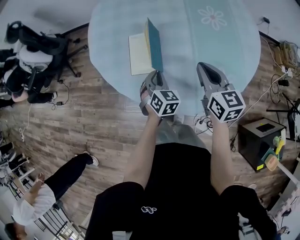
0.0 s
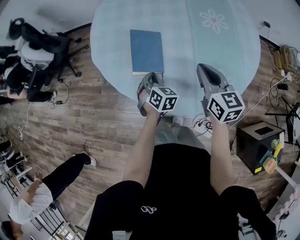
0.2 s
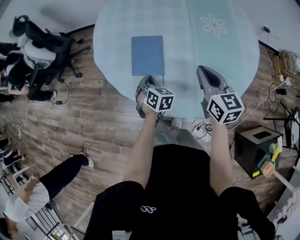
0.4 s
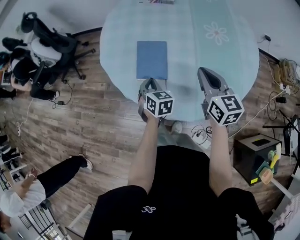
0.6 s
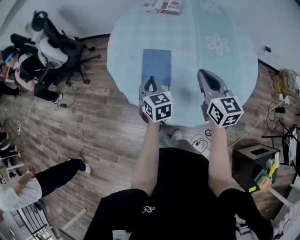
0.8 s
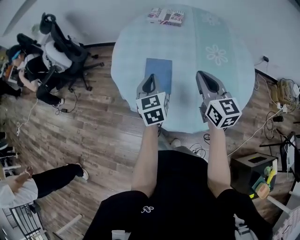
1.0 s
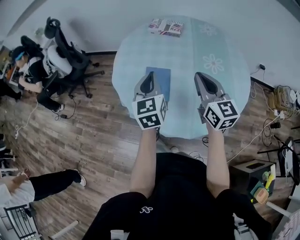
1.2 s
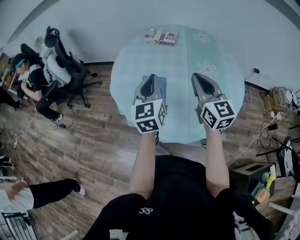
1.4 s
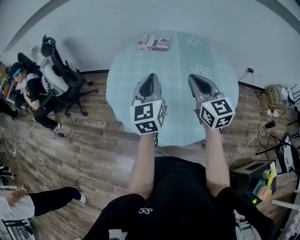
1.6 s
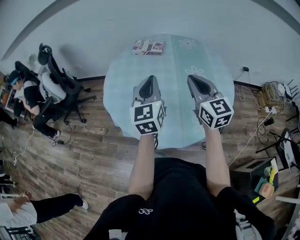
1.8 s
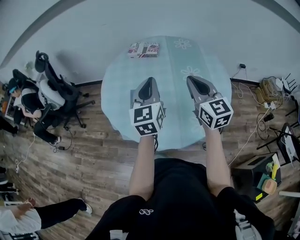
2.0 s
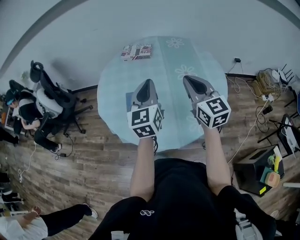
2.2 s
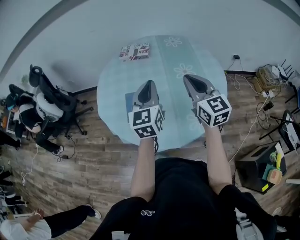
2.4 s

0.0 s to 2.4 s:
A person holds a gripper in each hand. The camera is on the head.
0.0 to 1.2 s: The right gripper moves upward, roughly 15 cm, and changes its angle by approximately 20 degrees. The left gripper travels upward by roughly 25 cm, and angles its fingers upward, by some 30 degrees.
1.2 to 2.4 s: The left gripper heads to the right and upward, covering approximately 15 cm. The right gripper moves to the right, about 10 cm.

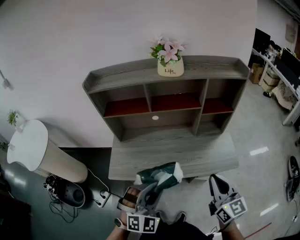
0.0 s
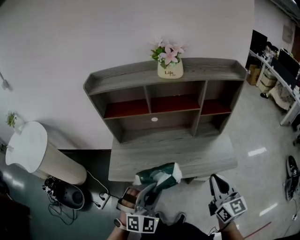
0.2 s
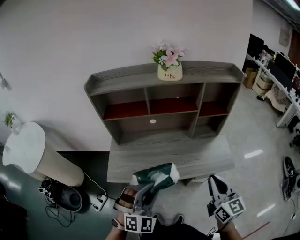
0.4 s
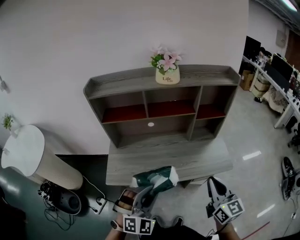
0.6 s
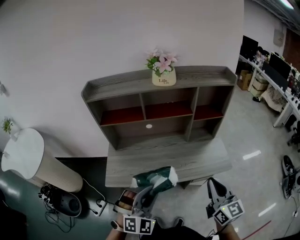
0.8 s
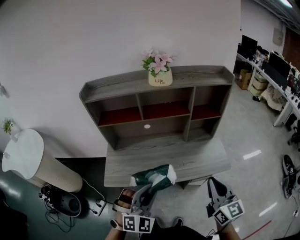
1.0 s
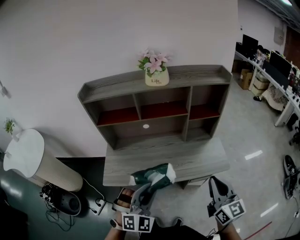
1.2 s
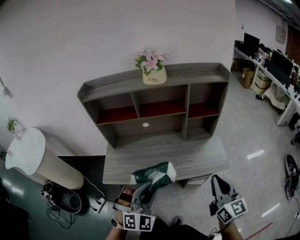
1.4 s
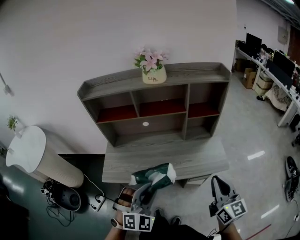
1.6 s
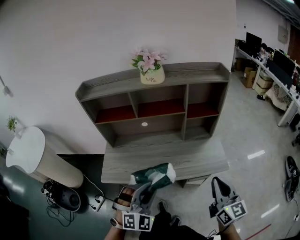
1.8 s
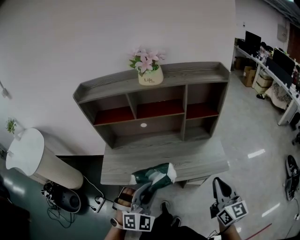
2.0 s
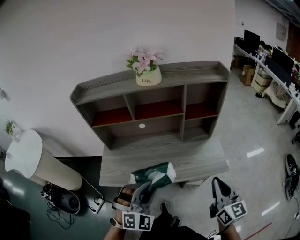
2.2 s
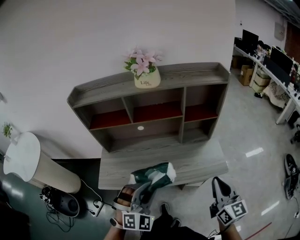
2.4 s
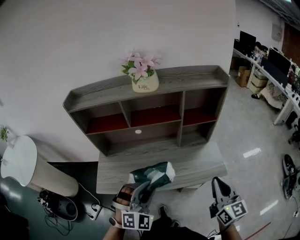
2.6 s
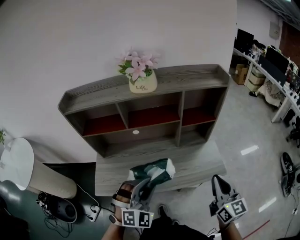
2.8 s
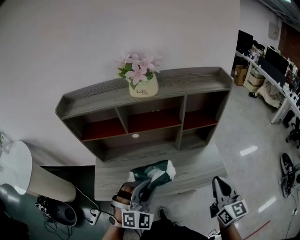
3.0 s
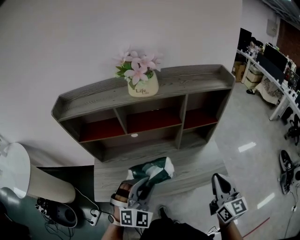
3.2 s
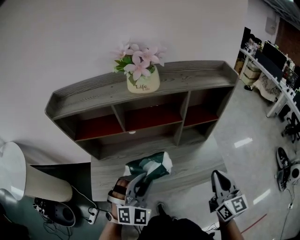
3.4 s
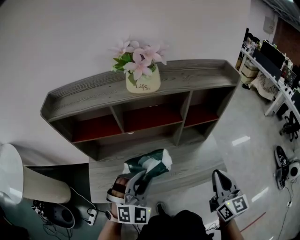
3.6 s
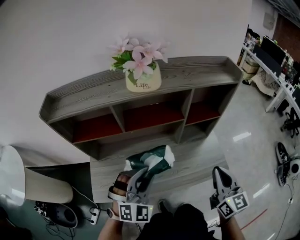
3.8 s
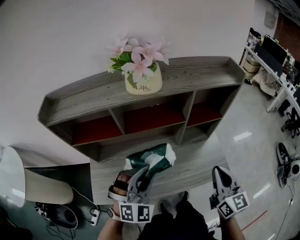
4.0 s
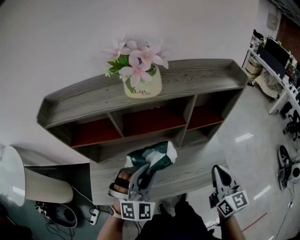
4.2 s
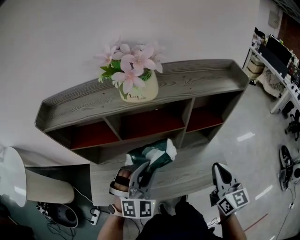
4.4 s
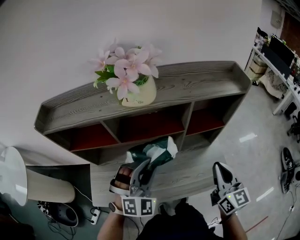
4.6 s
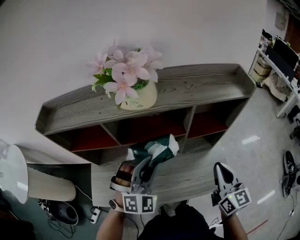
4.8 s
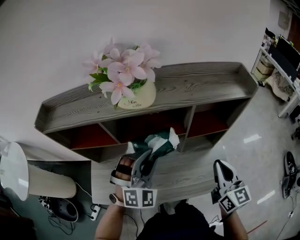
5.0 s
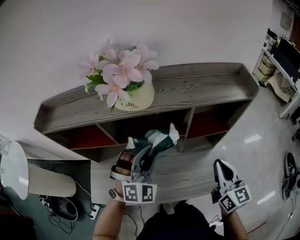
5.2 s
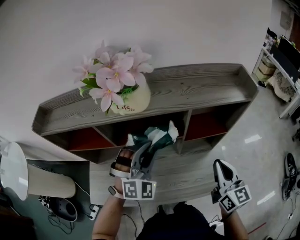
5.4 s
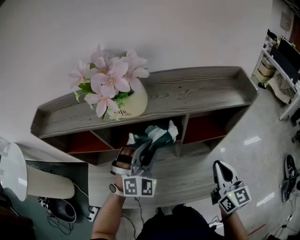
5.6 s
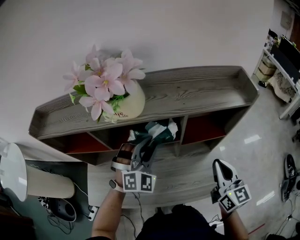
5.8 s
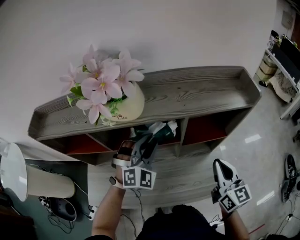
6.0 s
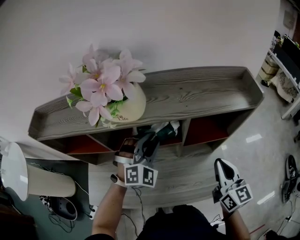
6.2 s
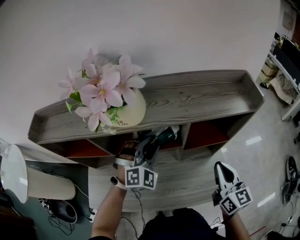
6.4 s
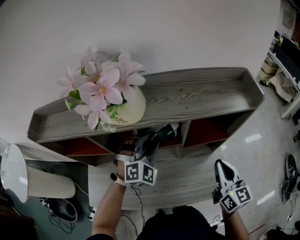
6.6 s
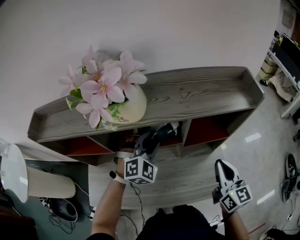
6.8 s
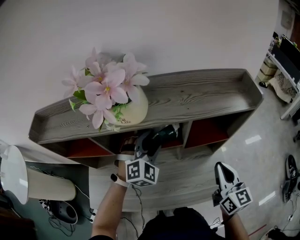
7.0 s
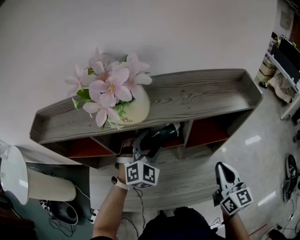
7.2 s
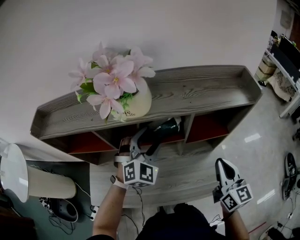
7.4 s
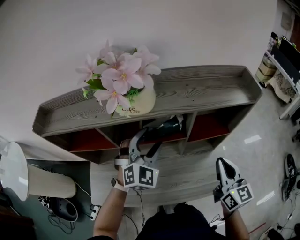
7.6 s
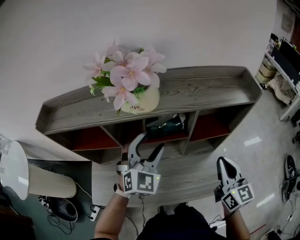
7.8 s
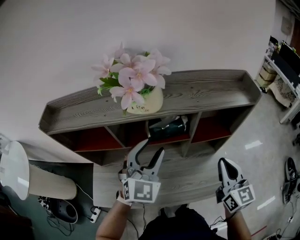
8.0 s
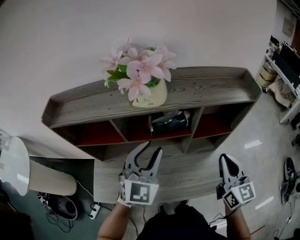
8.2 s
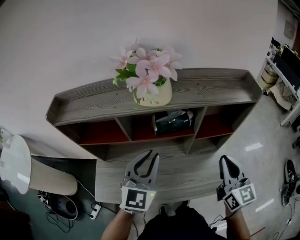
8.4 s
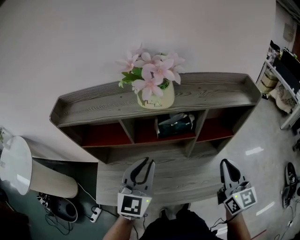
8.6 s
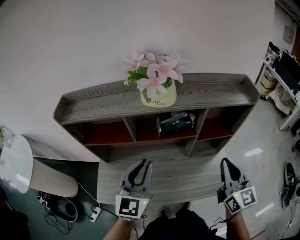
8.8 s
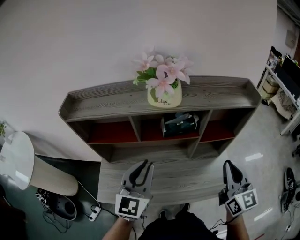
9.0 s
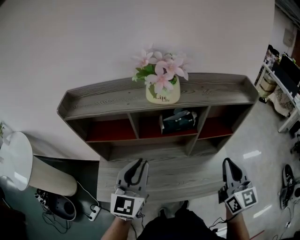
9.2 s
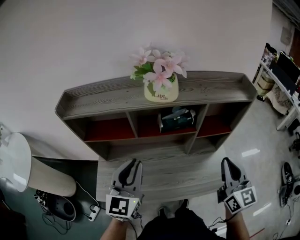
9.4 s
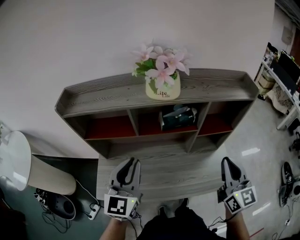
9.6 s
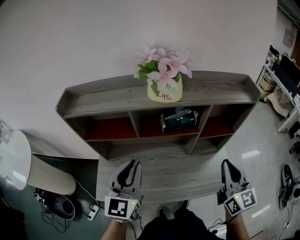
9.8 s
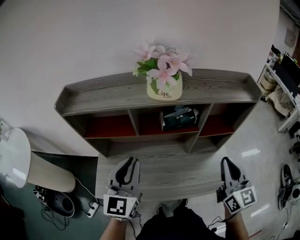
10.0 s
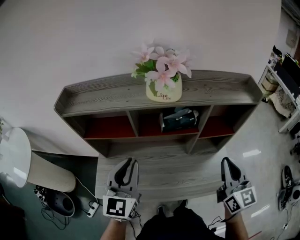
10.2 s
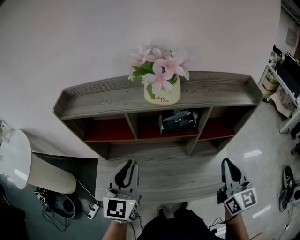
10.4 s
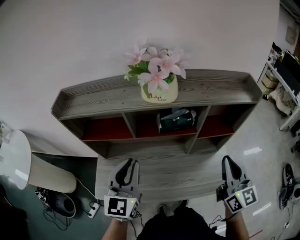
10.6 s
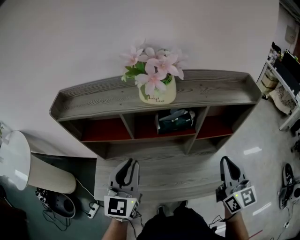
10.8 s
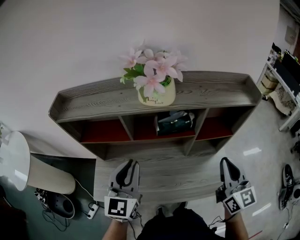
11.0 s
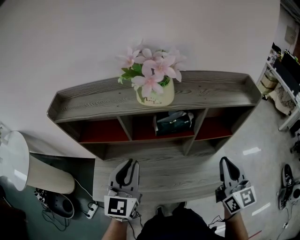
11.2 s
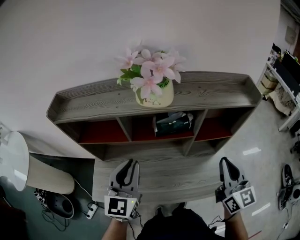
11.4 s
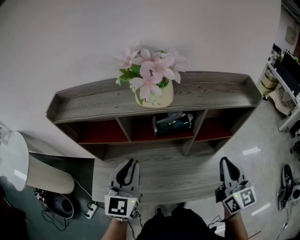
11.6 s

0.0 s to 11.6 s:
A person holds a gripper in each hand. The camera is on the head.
0.0 to 1.4 s: The right gripper is displaced to the right by roughly 5 cm.
1.4 to 2.8 s: The grippers both shift forward by some 10 cm.
2.8 to 4.4 s: Both grippers move forward, about 15 cm.
4.4 to 5.8 s: The right gripper moves forward and to the right, approximately 10 cm; the left gripper moves forward, about 15 cm.
5.8 to 7.2 s: The left gripper opens up.
7.2 to 8.8 s: The left gripper moves backward, to the left and upward, some 25 cm, rolls counterclockwise, seen from behind, by approximately 50 degrees, and closes its fingers. The right gripper heads upward, backward and to the left, covering about 10 cm.
8.8 to 10.2 s: The left gripper heads to the left, covering approximately 5 cm.
10.2 to 11.6 s: There are only small adjustments of the grippers.

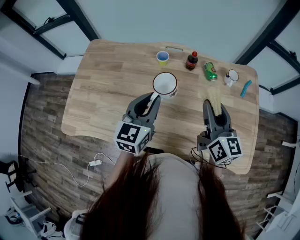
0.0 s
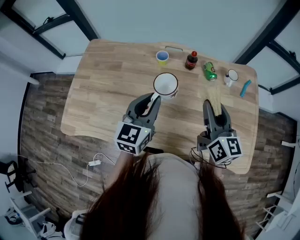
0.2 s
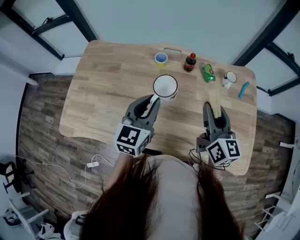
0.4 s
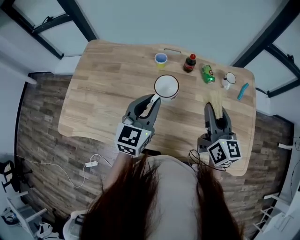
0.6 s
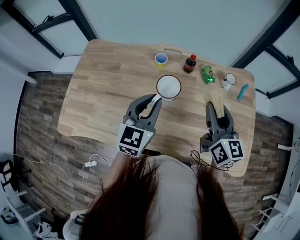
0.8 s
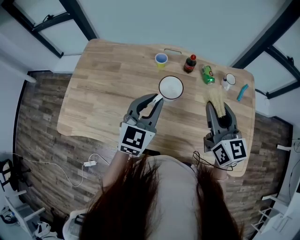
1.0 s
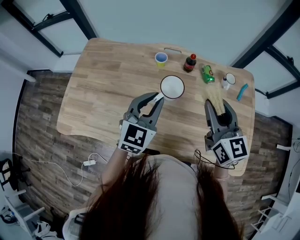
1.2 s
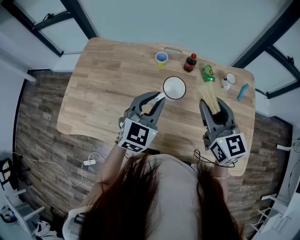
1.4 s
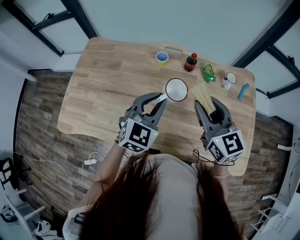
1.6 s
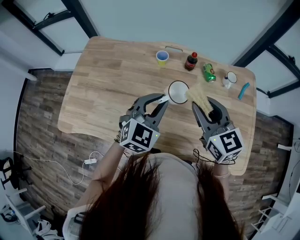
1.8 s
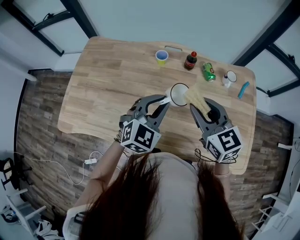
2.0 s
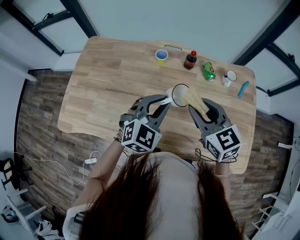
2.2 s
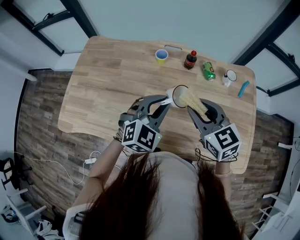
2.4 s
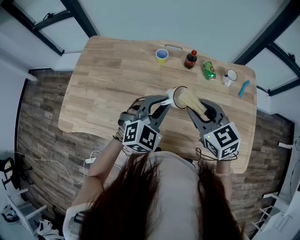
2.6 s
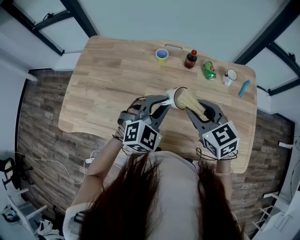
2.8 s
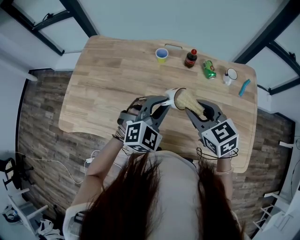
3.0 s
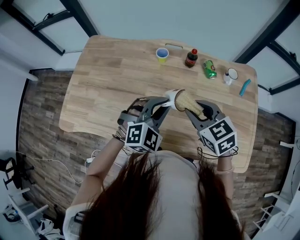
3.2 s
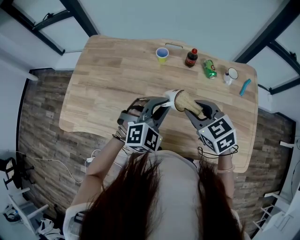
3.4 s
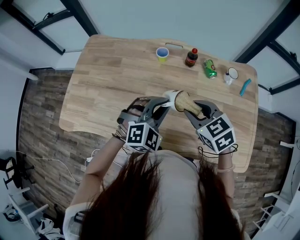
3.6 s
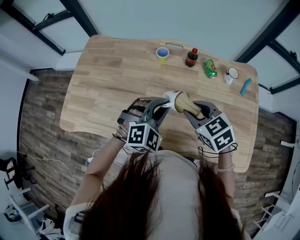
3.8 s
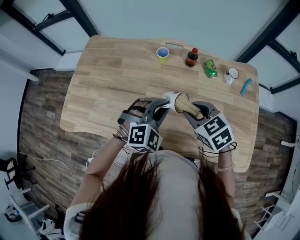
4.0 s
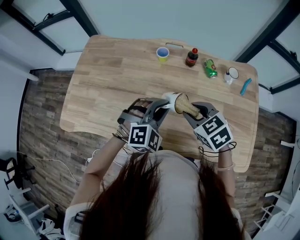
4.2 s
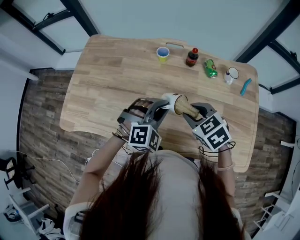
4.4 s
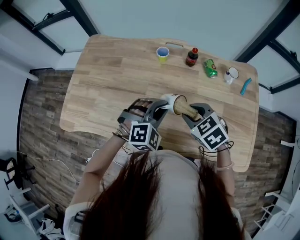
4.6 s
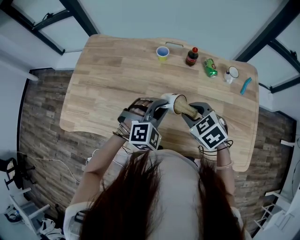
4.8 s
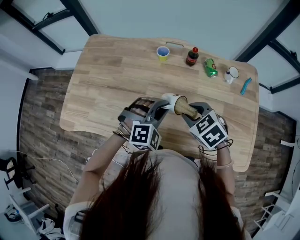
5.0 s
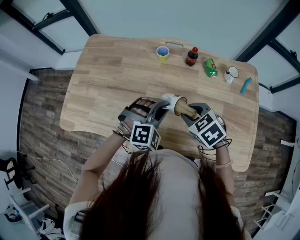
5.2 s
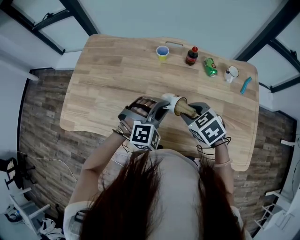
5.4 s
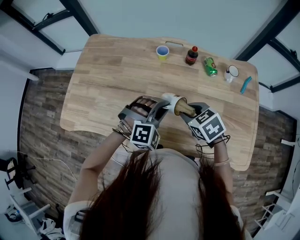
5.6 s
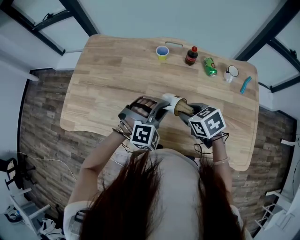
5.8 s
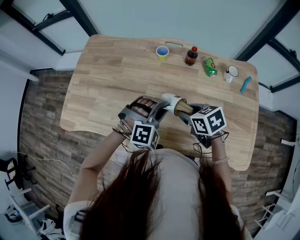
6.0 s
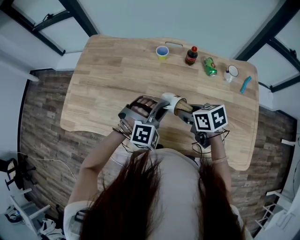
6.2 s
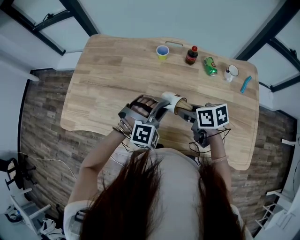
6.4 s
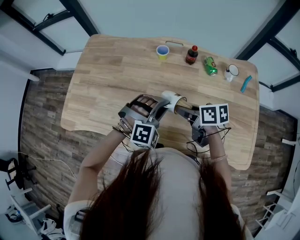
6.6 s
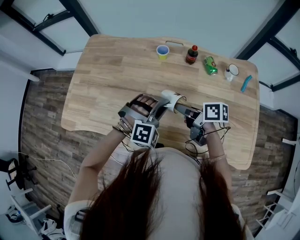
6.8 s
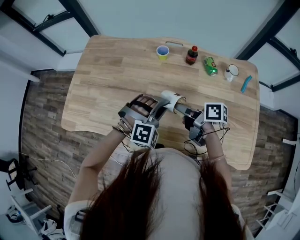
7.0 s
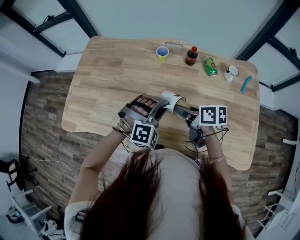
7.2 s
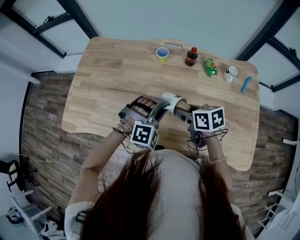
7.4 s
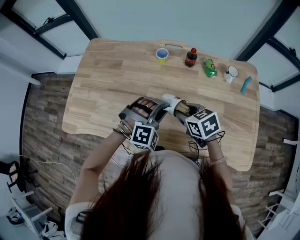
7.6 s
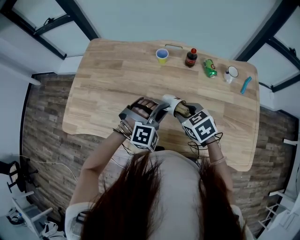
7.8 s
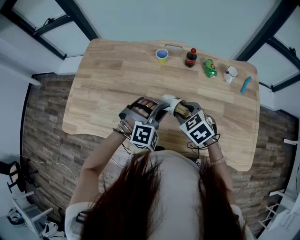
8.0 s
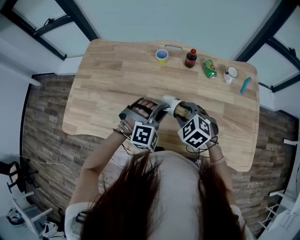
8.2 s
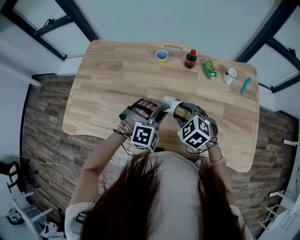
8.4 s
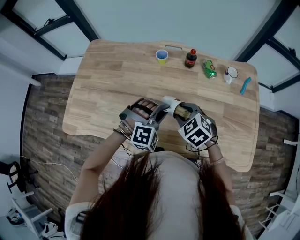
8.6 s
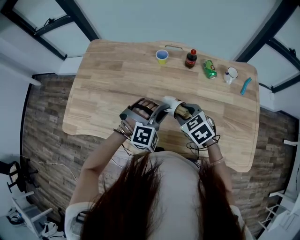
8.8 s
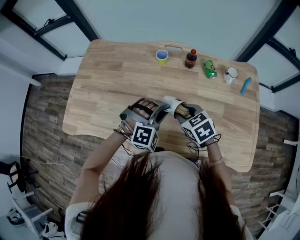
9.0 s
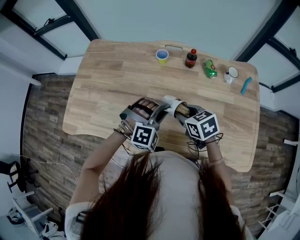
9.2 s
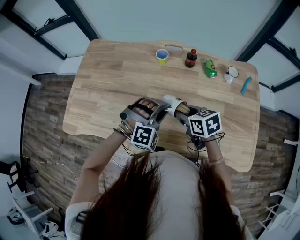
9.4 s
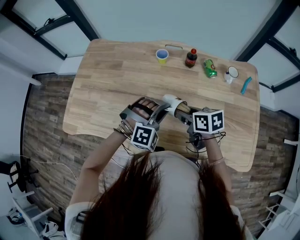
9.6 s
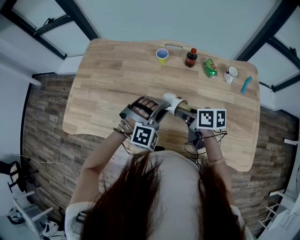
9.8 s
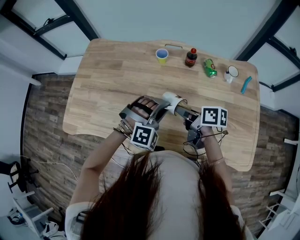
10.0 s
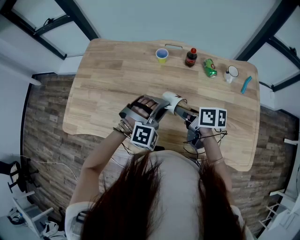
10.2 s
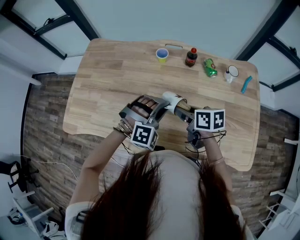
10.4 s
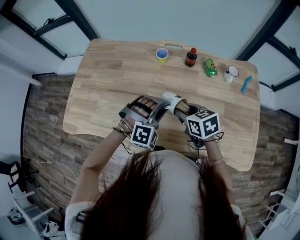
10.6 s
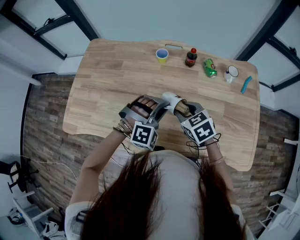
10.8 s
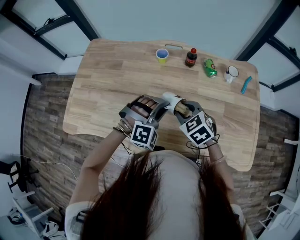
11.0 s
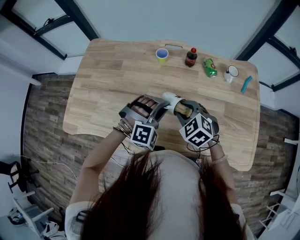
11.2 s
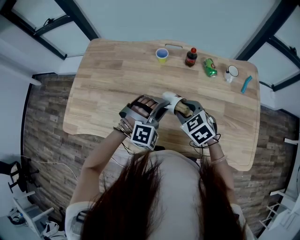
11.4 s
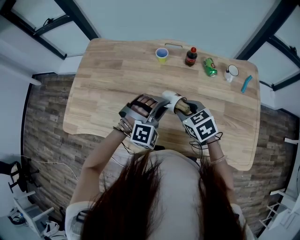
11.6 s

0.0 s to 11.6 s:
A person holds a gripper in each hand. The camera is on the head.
0.0 to 1.4 s: The left gripper turns by about 20 degrees; the right gripper rotates approximately 20 degrees.
1.4 to 2.8 s: The left gripper swivels about 20 degrees, while the right gripper shifts about 5 cm downward, and swivels some 20 degrees.
2.8 to 4.4 s: The right gripper moves downward, approximately 5 cm, and swivels roughly 20 degrees.
4.4 to 5.8 s: The grippers stay close to where they were, moving slightly.
5.8 to 7.2 s: The right gripper rolls clockwise, seen from behind, by some 40 degrees.
7.2 to 8.8 s: The right gripper rotates around the line of its fingers by some 60 degrees, counterclockwise from behind.
8.8 to 10.2 s: The right gripper twists approximately 60 degrees clockwise, seen from behind.
10.2 to 11.6 s: The right gripper twists approximately 50 degrees counterclockwise, seen from behind.
